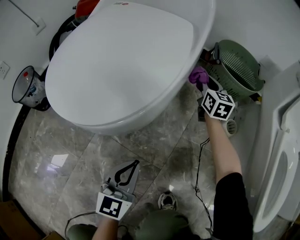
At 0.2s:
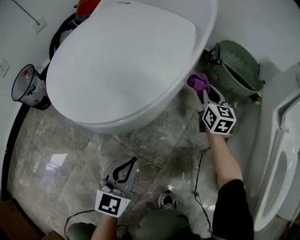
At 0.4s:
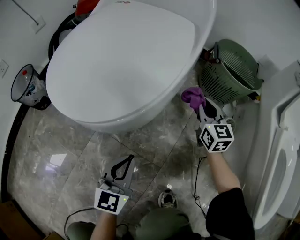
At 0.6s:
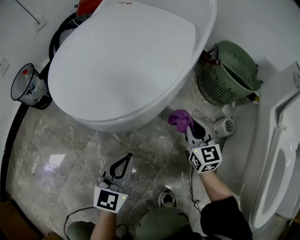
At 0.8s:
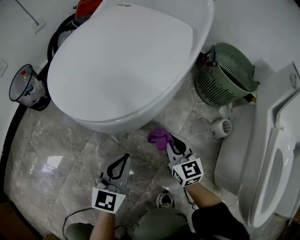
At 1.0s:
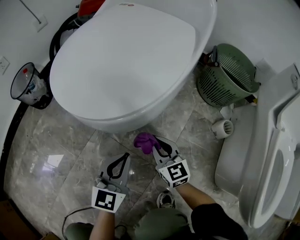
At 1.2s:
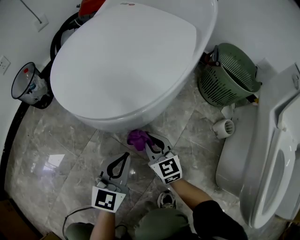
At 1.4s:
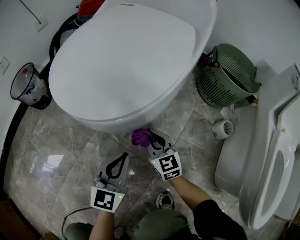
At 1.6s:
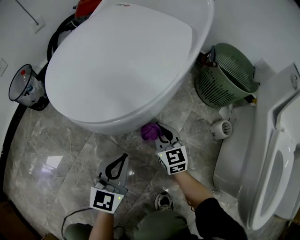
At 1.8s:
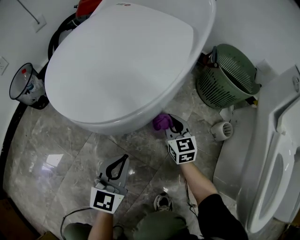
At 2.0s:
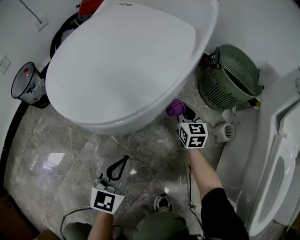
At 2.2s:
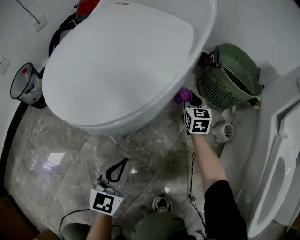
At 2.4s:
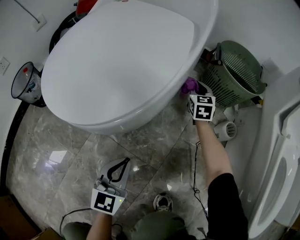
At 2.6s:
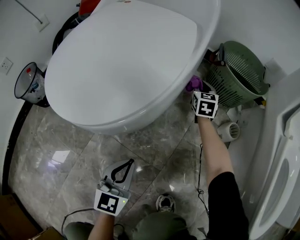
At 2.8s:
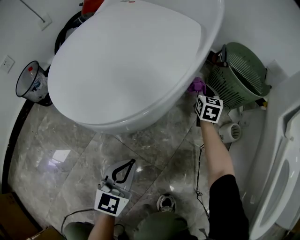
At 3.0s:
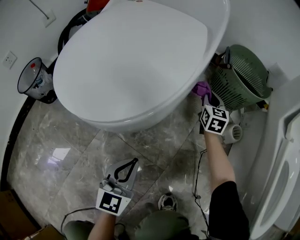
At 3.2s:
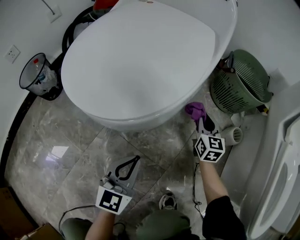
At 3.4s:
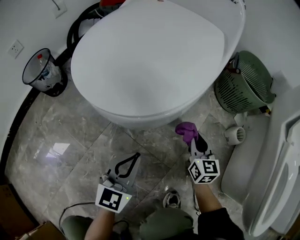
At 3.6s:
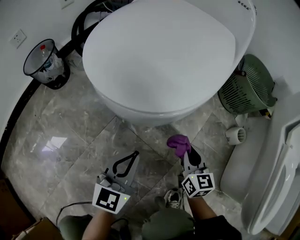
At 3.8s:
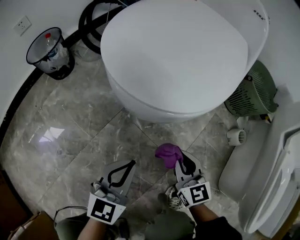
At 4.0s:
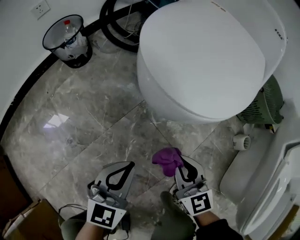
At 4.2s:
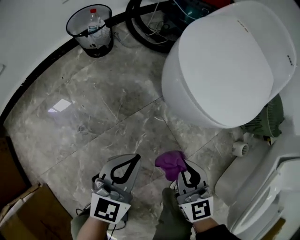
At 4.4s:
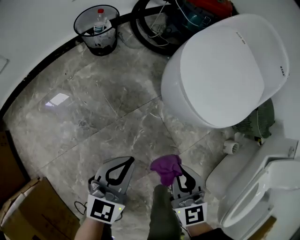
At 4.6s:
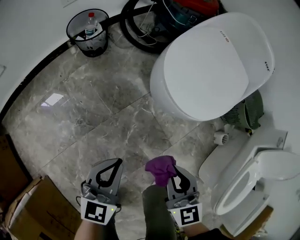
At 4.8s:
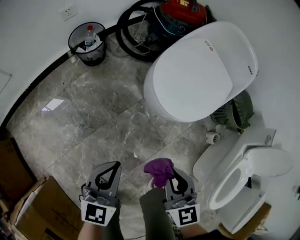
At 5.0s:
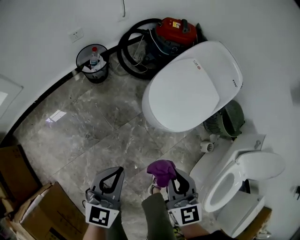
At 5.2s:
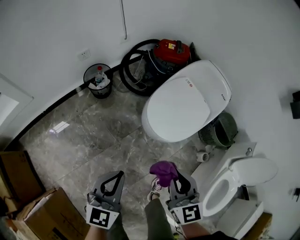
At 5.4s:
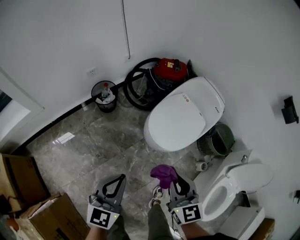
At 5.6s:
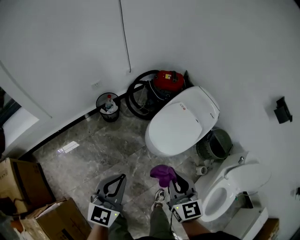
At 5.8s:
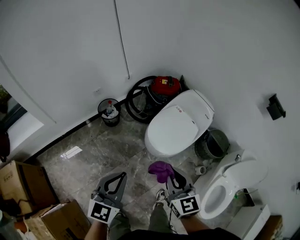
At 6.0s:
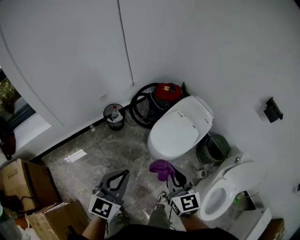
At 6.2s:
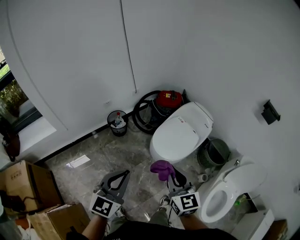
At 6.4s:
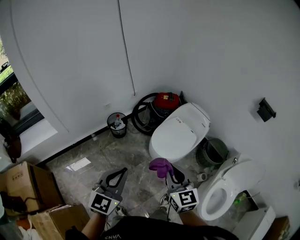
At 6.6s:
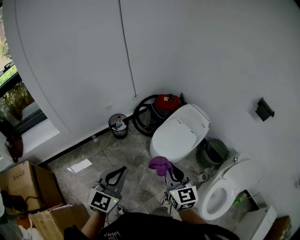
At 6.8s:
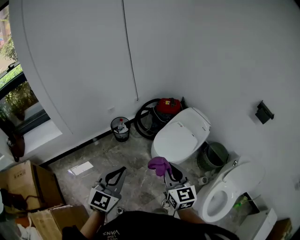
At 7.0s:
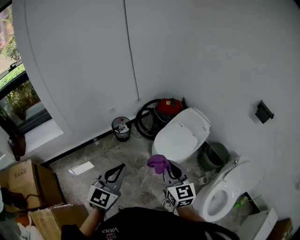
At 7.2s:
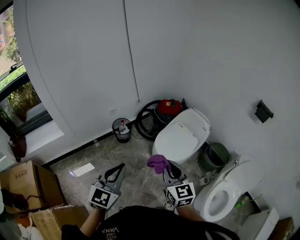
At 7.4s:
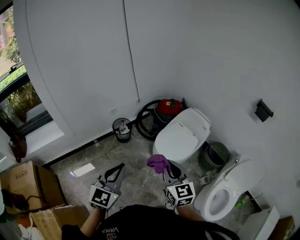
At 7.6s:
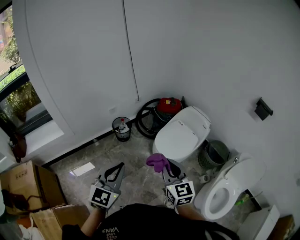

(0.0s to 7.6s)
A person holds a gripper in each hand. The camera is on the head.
0.0s - 1.6s: The right gripper goes some 30 cm backward, to the left and downward, and rotates some 30 degrees.
1.6s - 3.0s: The right gripper moves forward and to the right, roughly 25 cm, and changes its angle by about 30 degrees.
3.0s - 4.6s: The left gripper ends up roughly 35 cm from where it was. The right gripper changes place by approximately 60 cm, and changes its angle by about 40 degrees.
4.6s - 6.0s: Both grippers travel together upward, some 50 cm.
6.0s - 7.6s: The left gripper goes about 10 cm backward, upward and to the left, while the right gripper travels backward and upward by roughly 10 cm.

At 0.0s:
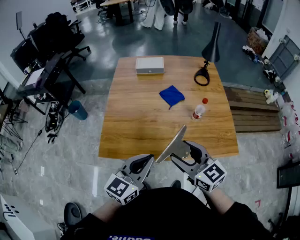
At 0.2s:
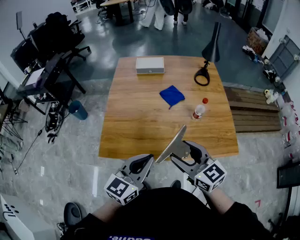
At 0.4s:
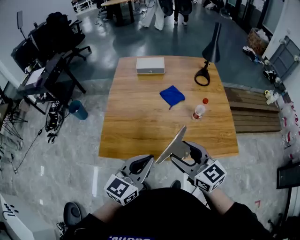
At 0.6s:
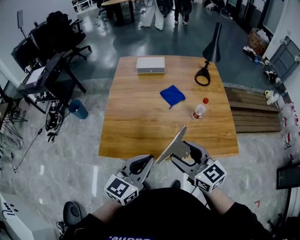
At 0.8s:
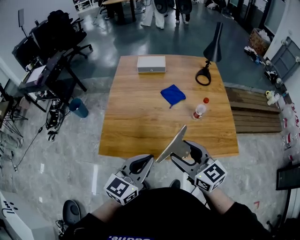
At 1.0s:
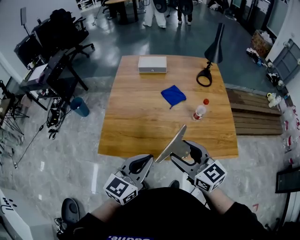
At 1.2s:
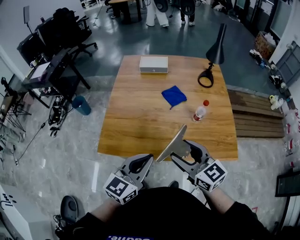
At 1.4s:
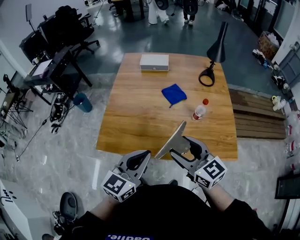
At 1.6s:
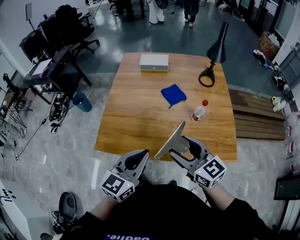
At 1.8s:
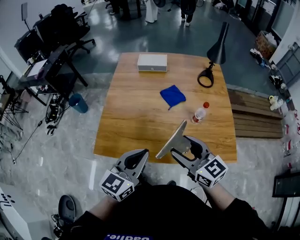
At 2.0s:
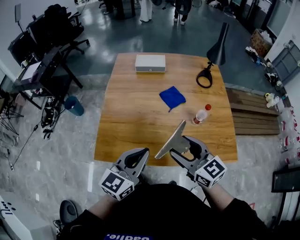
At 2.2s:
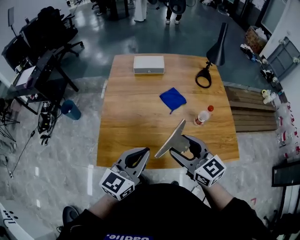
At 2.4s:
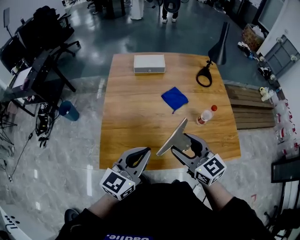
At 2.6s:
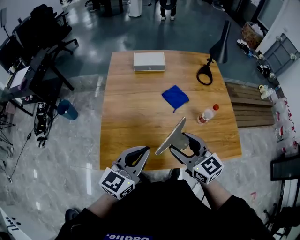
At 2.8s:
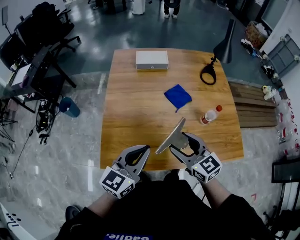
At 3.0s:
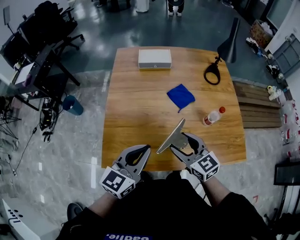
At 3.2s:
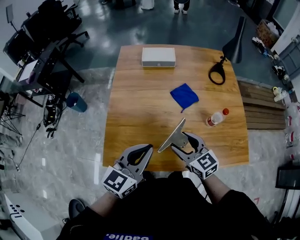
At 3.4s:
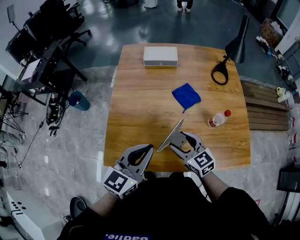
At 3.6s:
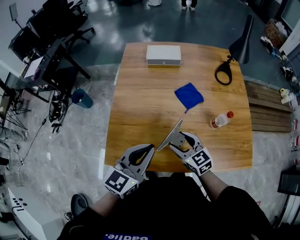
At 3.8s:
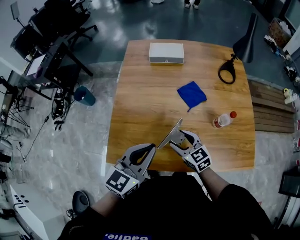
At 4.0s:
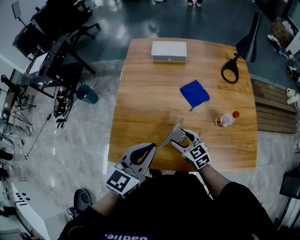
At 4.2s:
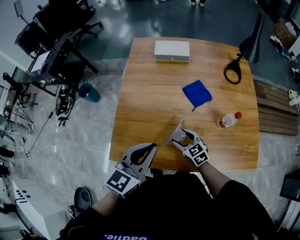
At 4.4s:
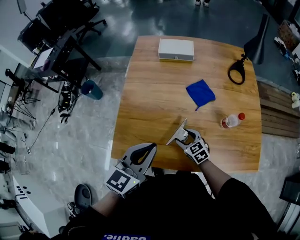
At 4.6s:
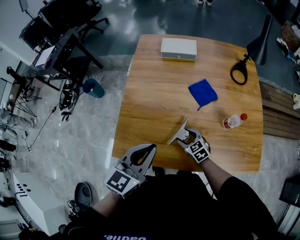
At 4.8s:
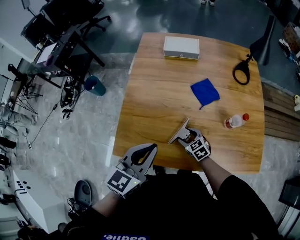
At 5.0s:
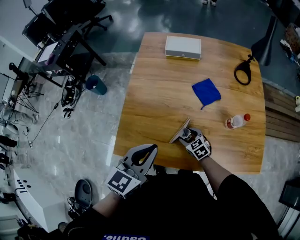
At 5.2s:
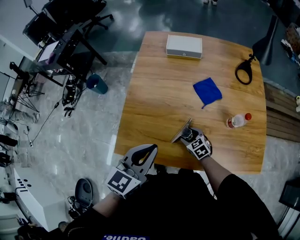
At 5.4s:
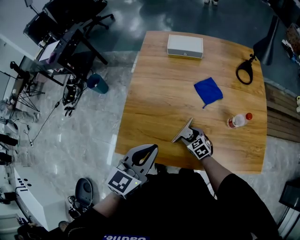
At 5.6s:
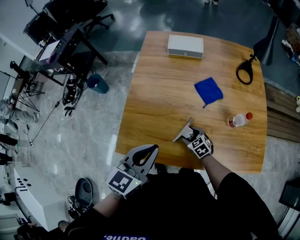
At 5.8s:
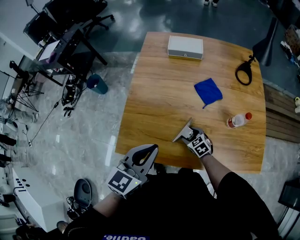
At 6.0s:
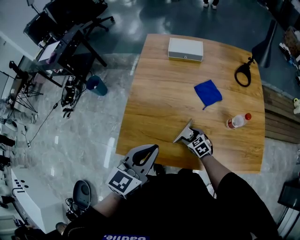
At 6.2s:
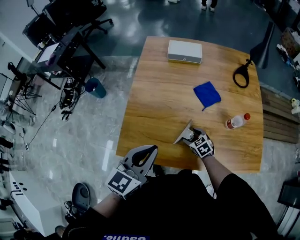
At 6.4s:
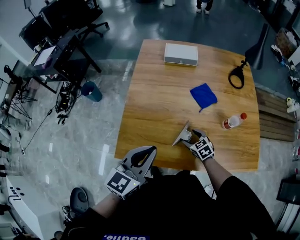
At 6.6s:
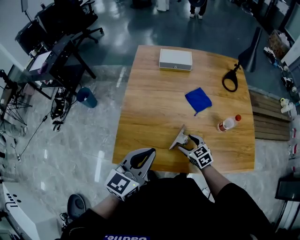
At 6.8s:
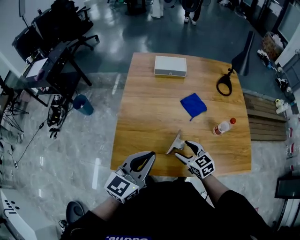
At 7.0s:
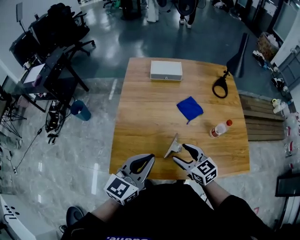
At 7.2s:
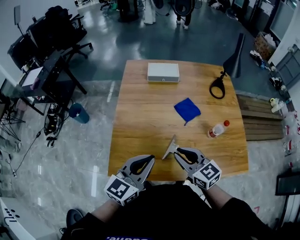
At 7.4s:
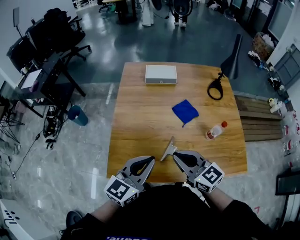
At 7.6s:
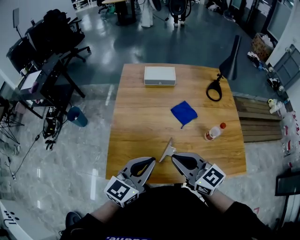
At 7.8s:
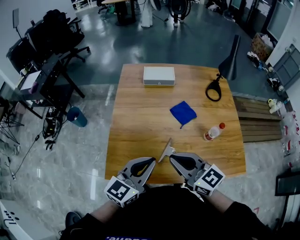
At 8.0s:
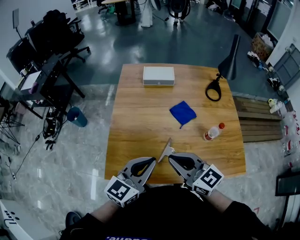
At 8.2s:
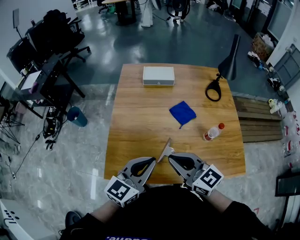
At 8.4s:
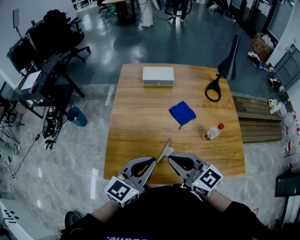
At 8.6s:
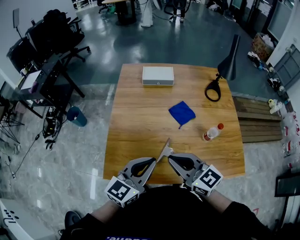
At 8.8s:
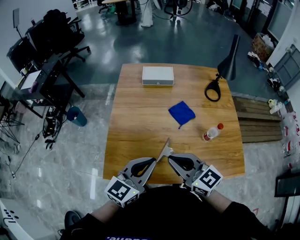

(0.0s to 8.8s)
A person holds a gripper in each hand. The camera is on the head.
0.0s - 1.4s: There are only small adjustments of the grippers.
1.4s - 3.0s: The left gripper moves forward and to the left, approximately 15 cm. Meanwhile the right gripper shifts about 20 cm forward, to the left and downward.
3.0s - 4.4s: The right gripper heads downward, covering approximately 20 cm, and rotates about 20 degrees.
4.4s - 5.8s: The right gripper travels downward by some 5 cm.
5.8s - 7.4s: The right gripper is displaced upward by roughly 35 cm, tilts its fingers approximately 40 degrees upward, and closes.
7.4s - 8.8s: The grippers stay close to where they were, moving slightly.

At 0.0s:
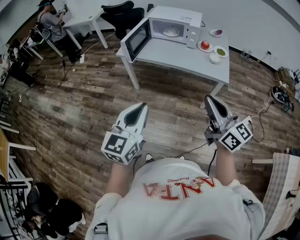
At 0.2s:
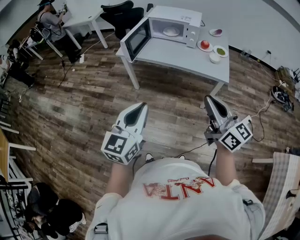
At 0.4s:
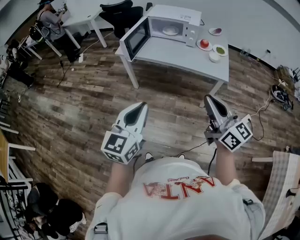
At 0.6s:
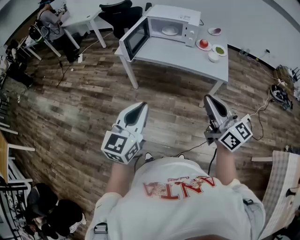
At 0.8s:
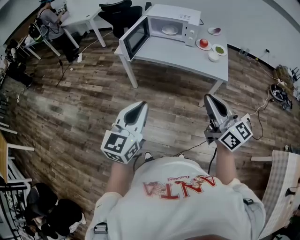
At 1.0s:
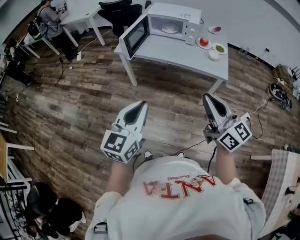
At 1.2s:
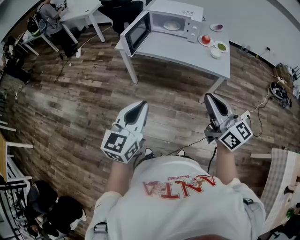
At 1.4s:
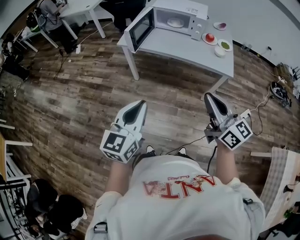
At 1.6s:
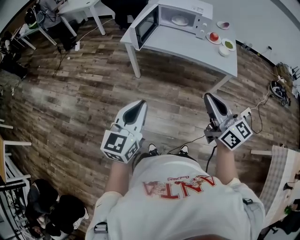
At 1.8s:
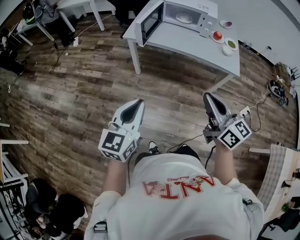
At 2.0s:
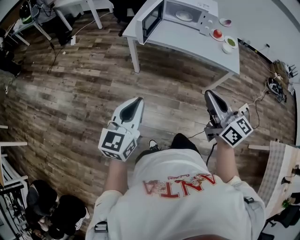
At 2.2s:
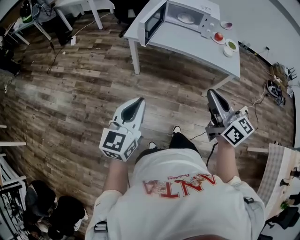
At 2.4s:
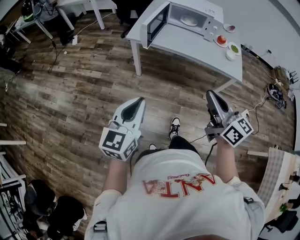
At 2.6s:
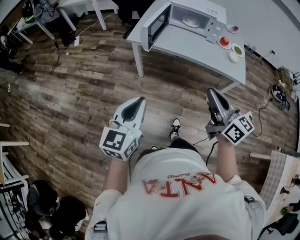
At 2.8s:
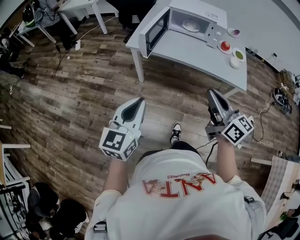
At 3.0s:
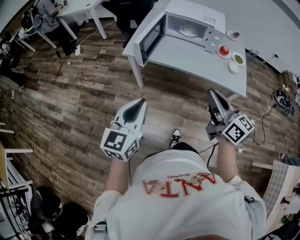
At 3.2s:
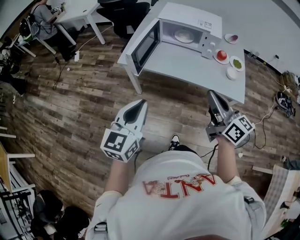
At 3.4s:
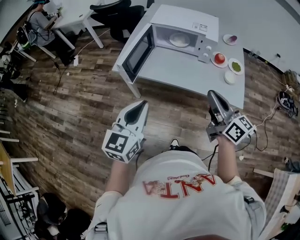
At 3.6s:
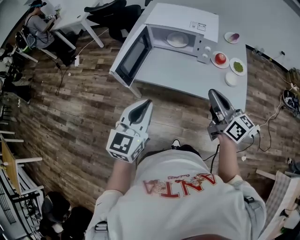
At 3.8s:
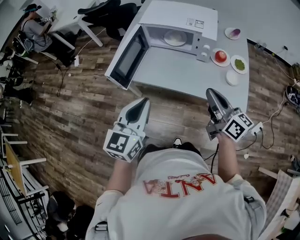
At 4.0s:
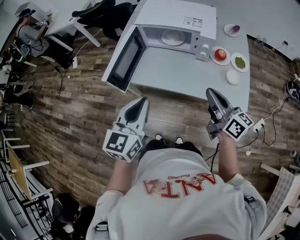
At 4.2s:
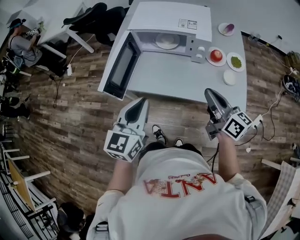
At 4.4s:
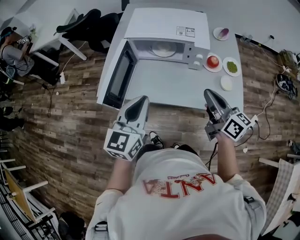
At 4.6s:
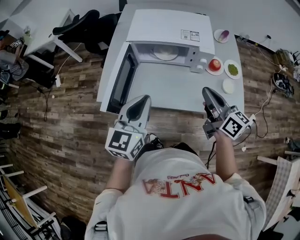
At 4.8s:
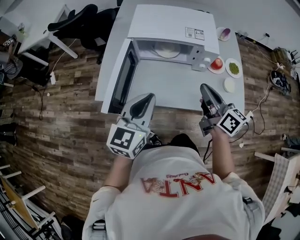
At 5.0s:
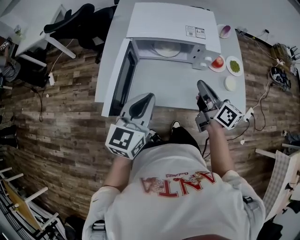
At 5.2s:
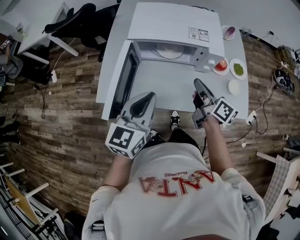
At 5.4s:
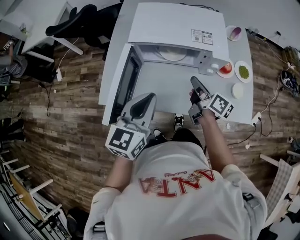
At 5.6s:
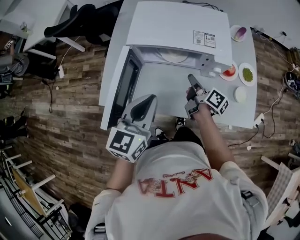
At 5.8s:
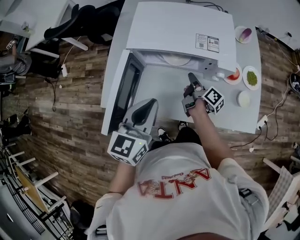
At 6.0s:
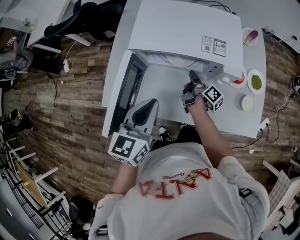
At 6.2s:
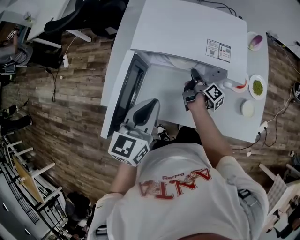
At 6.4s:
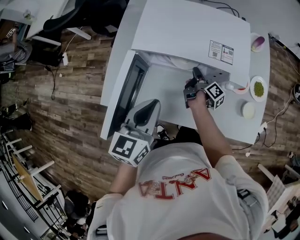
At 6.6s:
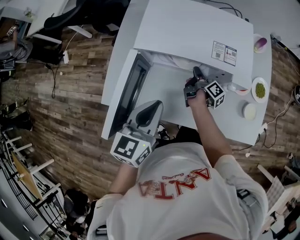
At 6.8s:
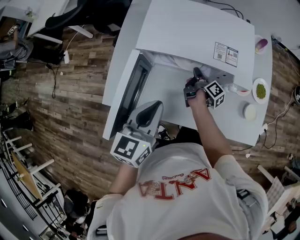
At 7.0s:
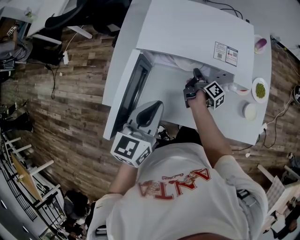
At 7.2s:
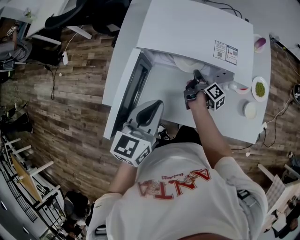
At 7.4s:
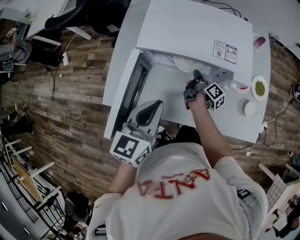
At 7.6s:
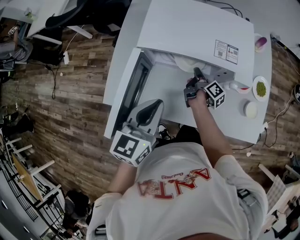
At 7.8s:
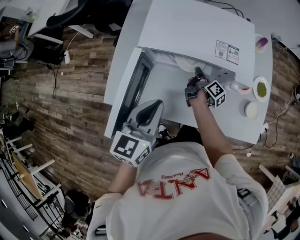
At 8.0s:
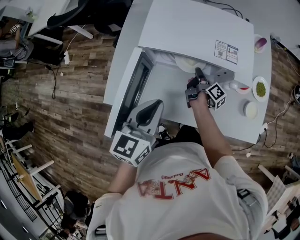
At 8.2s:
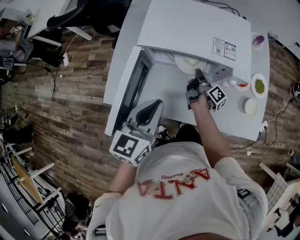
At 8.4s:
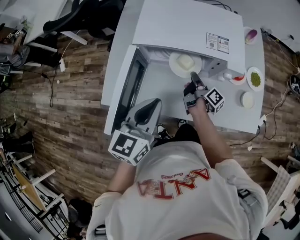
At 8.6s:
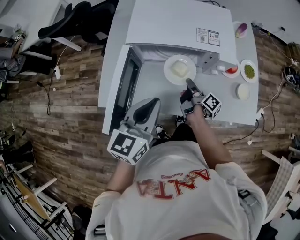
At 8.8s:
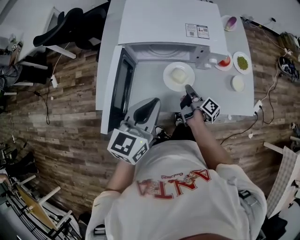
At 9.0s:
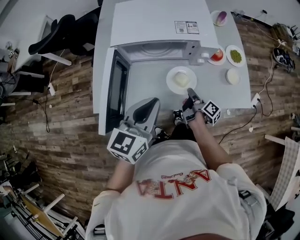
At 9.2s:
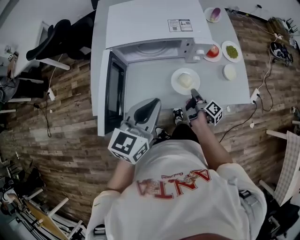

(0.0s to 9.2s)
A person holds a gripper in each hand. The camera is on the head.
0.0s - 1.6s: Both grippers move to the left, some 10 cm.
1.6s - 3.0s: The two grippers go about 15 cm forward.
3.0s - 4.6s: The left gripper heads forward and to the right, covering approximately 35 cm. Meanwhile the right gripper moves forward, about 30 cm.
4.6s - 6.2s: The right gripper is displaced downward and forward by roughly 35 cm, and twists about 60 degrees clockwise, seen from behind, while the left gripper travels forward and downward by approximately 15 cm.
6.2s - 7.6s: There are only small adjustments of the grippers.
7.6s - 9.2s: The left gripper goes approximately 10 cm to the right and backward; the right gripper heads backward and to the right, covering approximately 25 cm.
